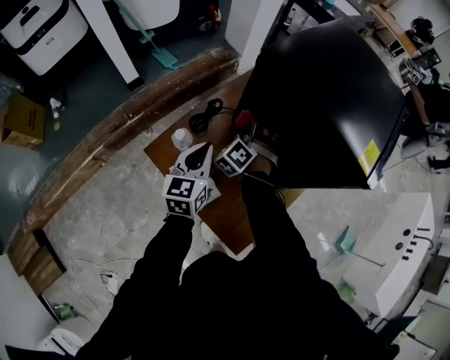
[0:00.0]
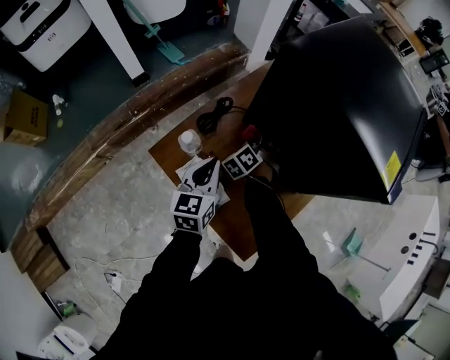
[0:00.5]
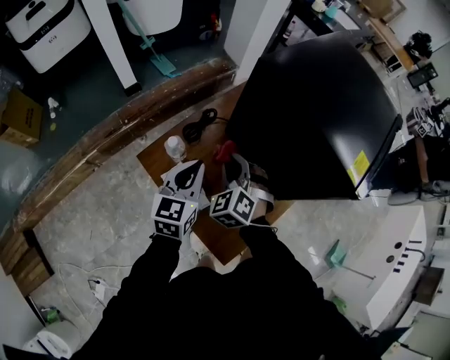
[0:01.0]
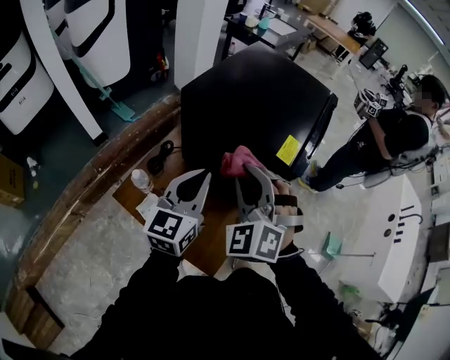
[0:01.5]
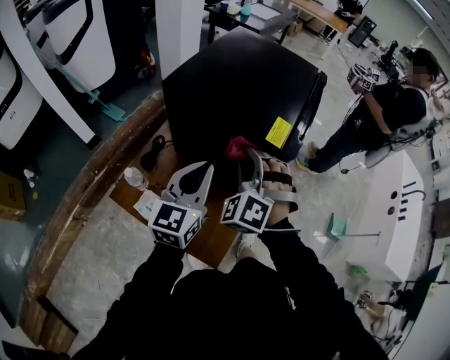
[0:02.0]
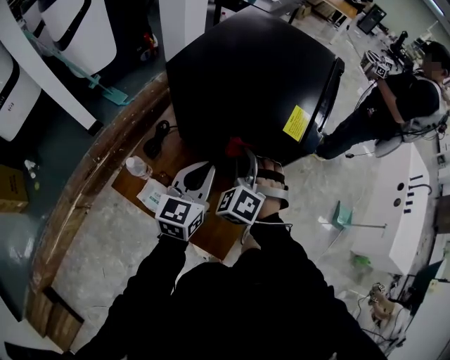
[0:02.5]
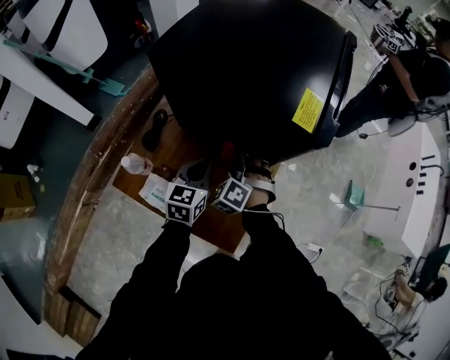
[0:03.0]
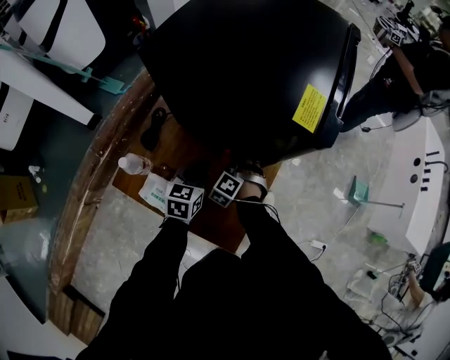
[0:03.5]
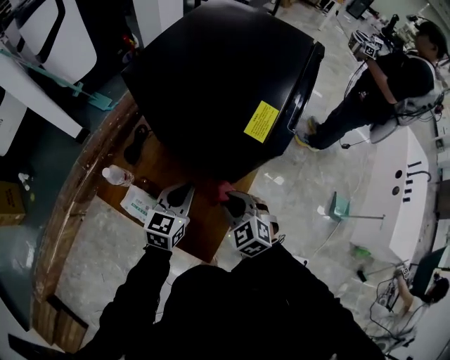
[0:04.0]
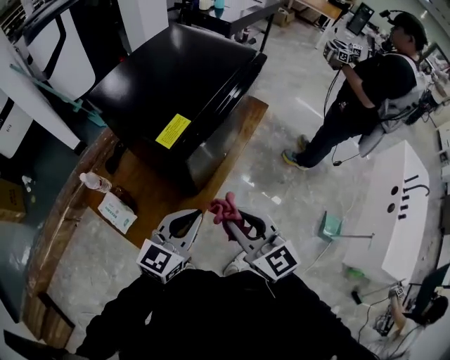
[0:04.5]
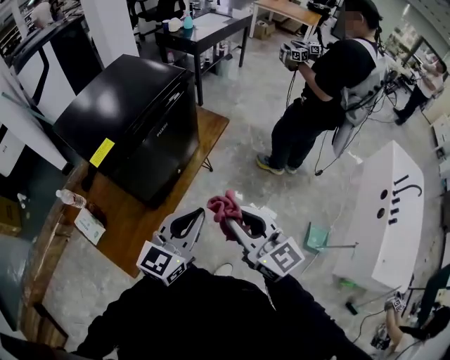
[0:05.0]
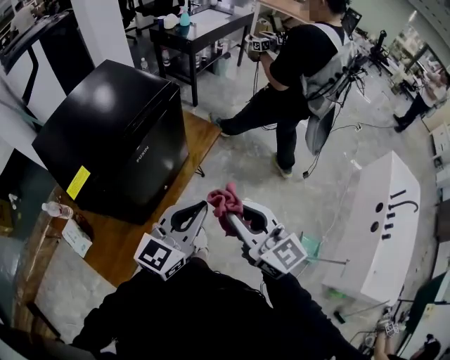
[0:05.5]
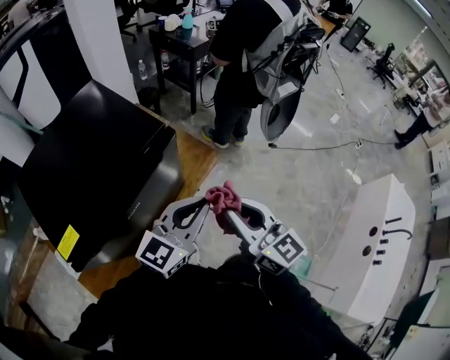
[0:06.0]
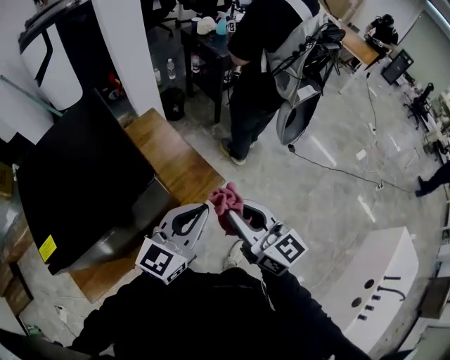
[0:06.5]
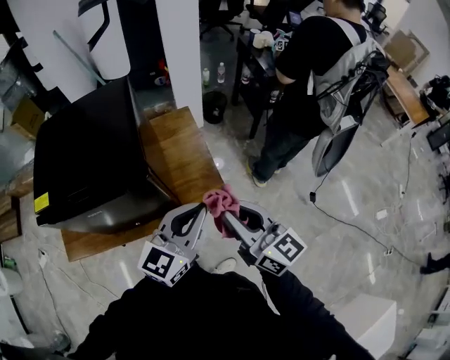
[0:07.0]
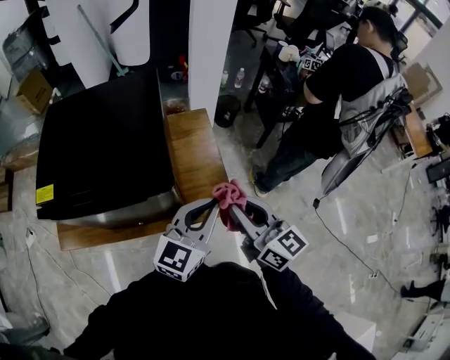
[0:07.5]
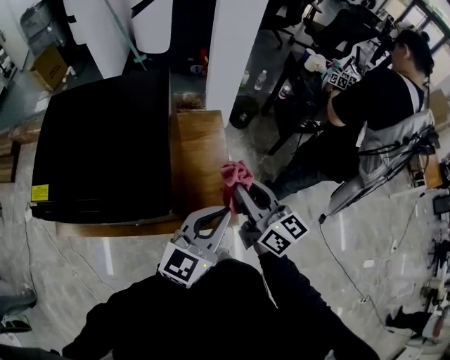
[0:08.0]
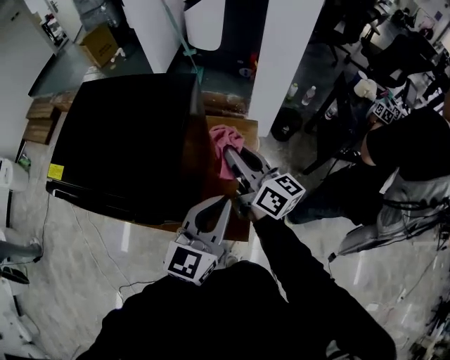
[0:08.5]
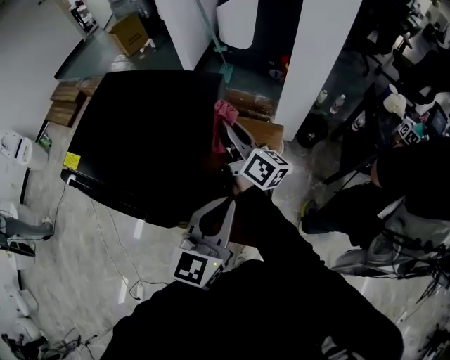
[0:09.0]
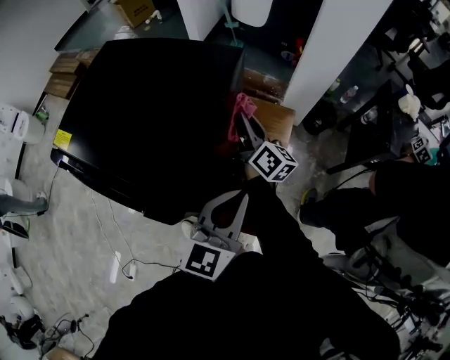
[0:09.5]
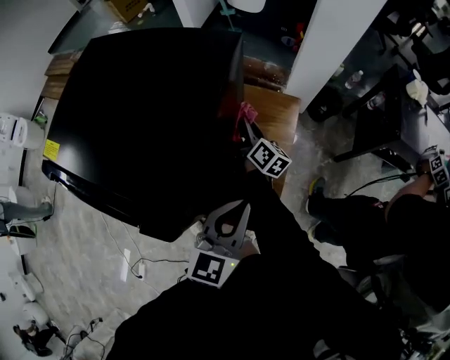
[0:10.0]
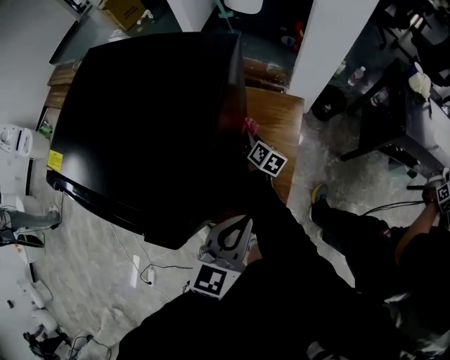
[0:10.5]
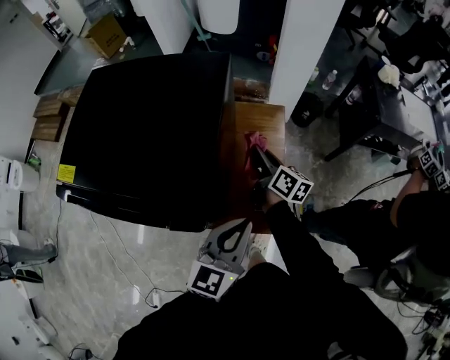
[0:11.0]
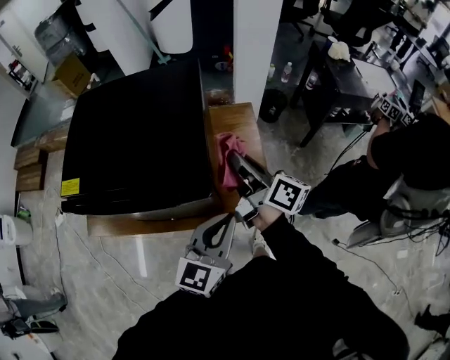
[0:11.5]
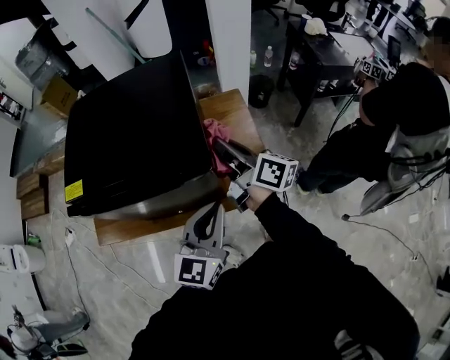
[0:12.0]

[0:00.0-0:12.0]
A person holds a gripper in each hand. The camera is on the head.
0:00.0 to 0:02.0: The right gripper swings up and down, some 40 cm each way, with 2 reversals; the left gripper is displaced to the right and upward by approximately 25 cm, and rotates some 30 degrees.
0:02.0 to 0:04.0: The grippers both shift downward by about 20 cm. The right gripper changes its angle by some 50 degrees.
0:04.0 to 0:06.0: The pair of grippers is taken to the right and forward, roughly 60 cm. The left gripper rotates roughly 20 degrees. Meanwhile the right gripper heads upward, covering roughly 25 cm, and tips its fingers upward by approximately 40 degrees.
0:06.0 to 0:08.0: The left gripper ends up about 30 cm from where it was, and turns by roughly 50 degrees. Meanwhile the right gripper changes place by roughly 35 cm, and rotates about 40 degrees.
0:08.0 to 0:10.0: The right gripper ends up about 40 cm from where it was, and turns by about 30 degrees; the left gripper travels downward by about 10 cm, and rotates approximately 40 degrees.
0:10.0 to 0:12.0: The left gripper travels backward, to the left and upward by about 20 cm, and rotates roughly 20 degrees; the right gripper heads backward and upward, covering roughly 35 cm.

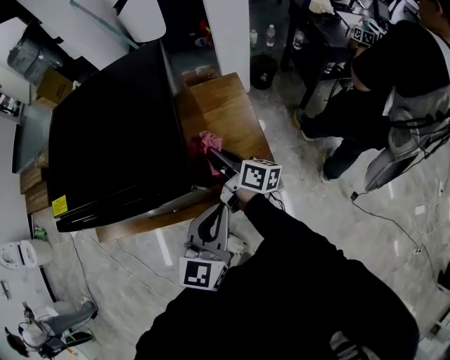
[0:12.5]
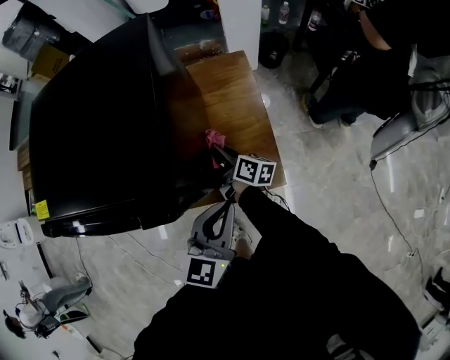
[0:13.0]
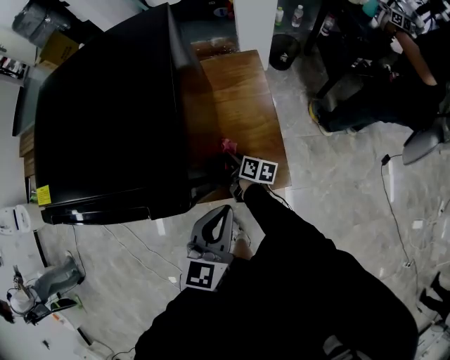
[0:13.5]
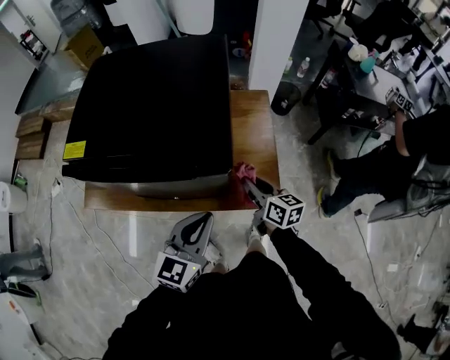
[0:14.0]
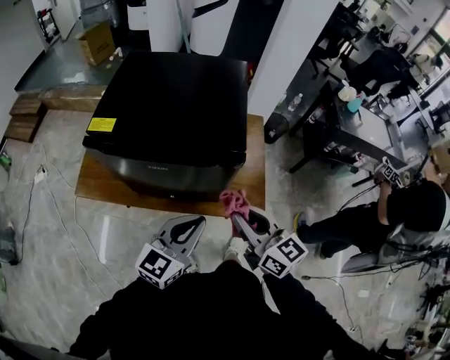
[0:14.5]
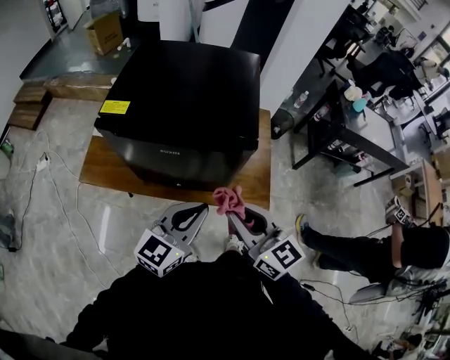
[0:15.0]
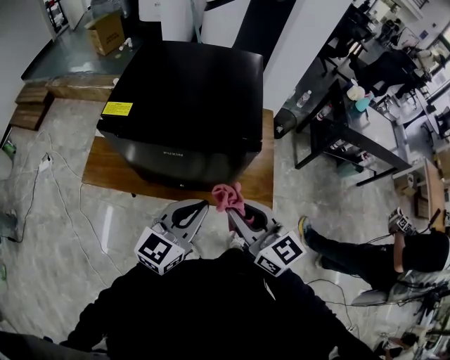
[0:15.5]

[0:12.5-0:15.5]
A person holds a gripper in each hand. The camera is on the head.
0:12.5 to 0:14.0: The left gripper travels to the left by approximately 10 cm. Meanwhile the right gripper is displaced backward by some 10 cm, goes downward and returns, some 25 cm each way, and rotates some 30 degrees.
0:14.0 to 0:15.5: The right gripper moves upward, backward and to the left, some 30 cm, and rotates some 30 degrees. Meanwhile the left gripper shifts approximately 10 cm upward, to the left and backward.

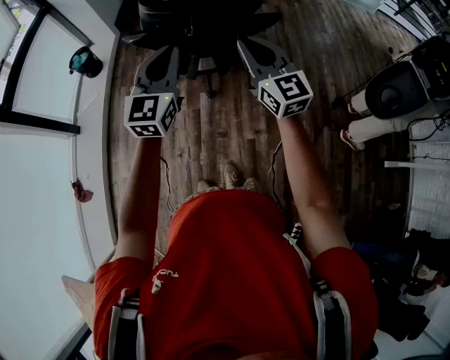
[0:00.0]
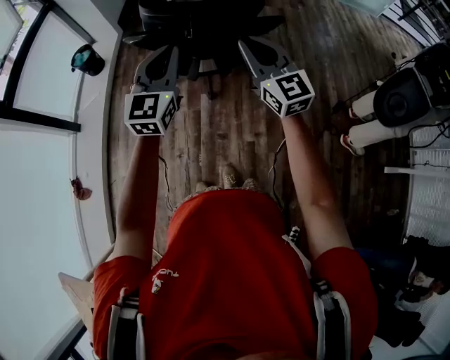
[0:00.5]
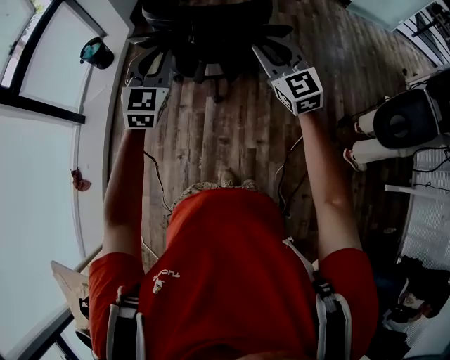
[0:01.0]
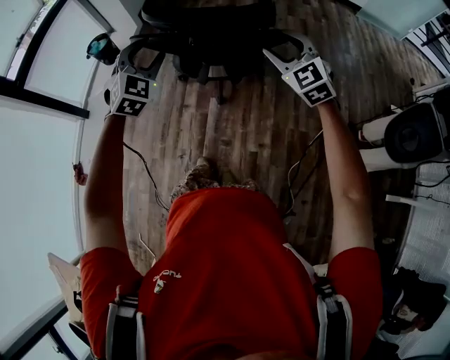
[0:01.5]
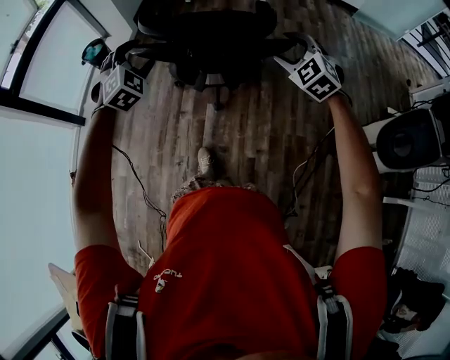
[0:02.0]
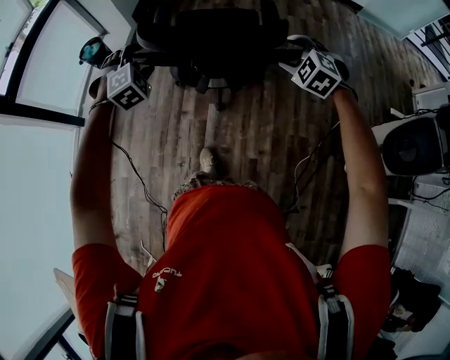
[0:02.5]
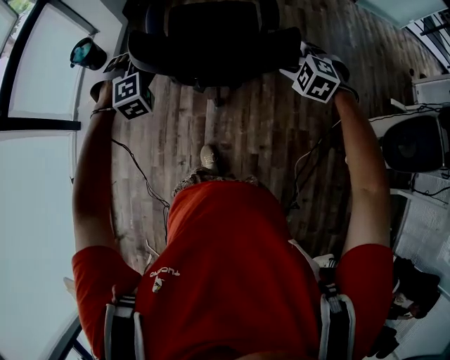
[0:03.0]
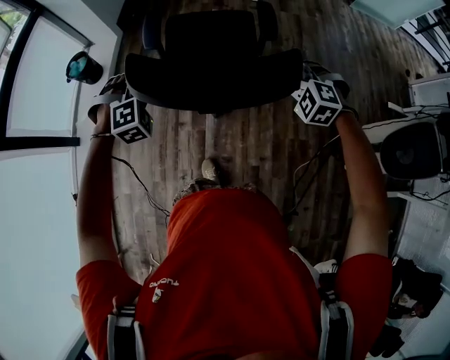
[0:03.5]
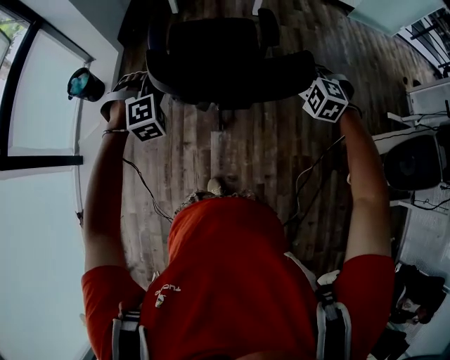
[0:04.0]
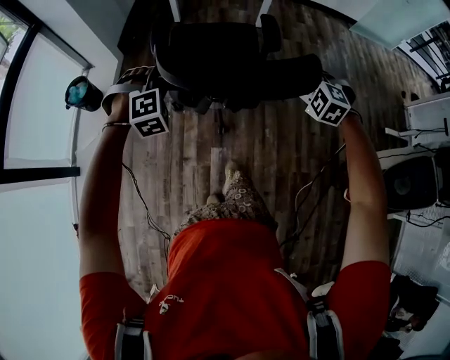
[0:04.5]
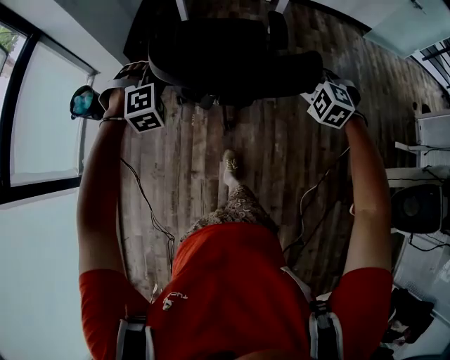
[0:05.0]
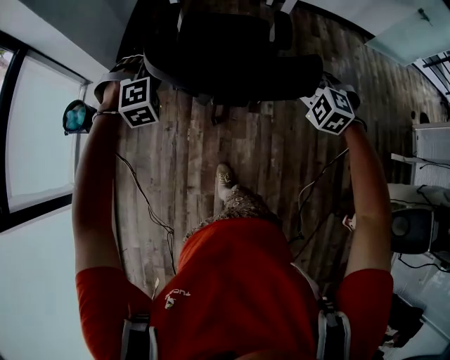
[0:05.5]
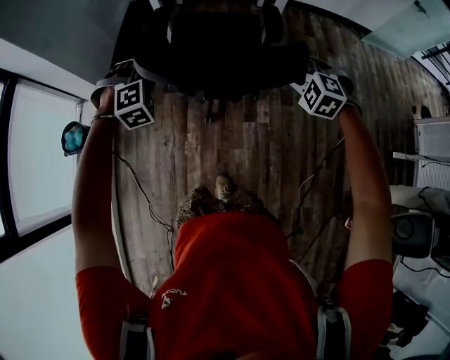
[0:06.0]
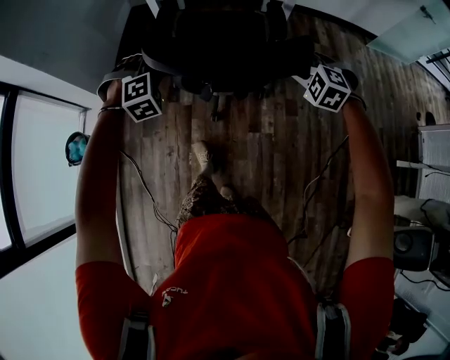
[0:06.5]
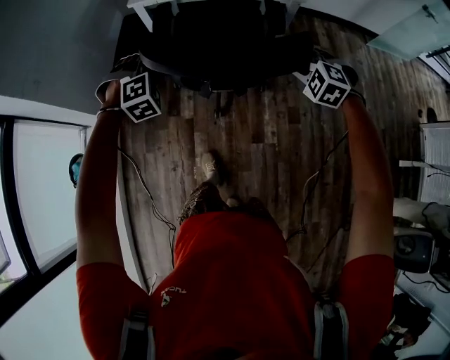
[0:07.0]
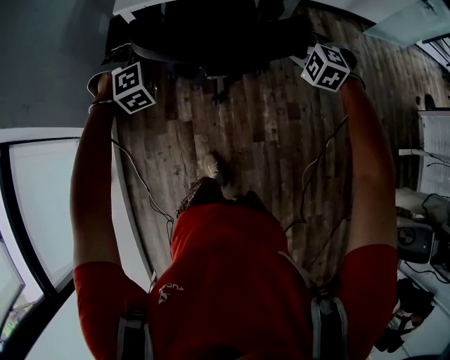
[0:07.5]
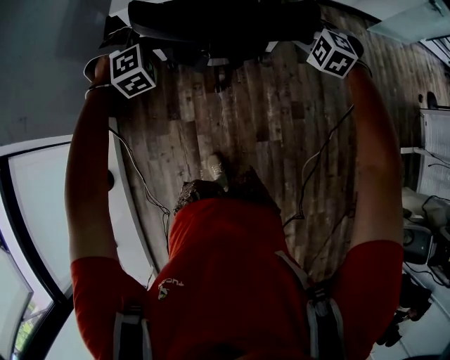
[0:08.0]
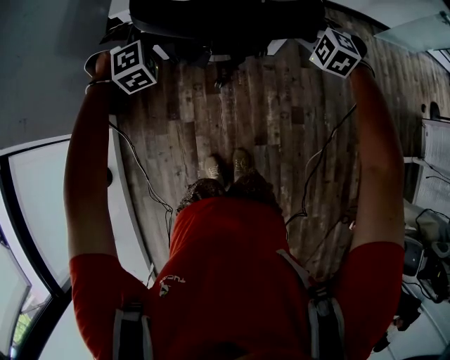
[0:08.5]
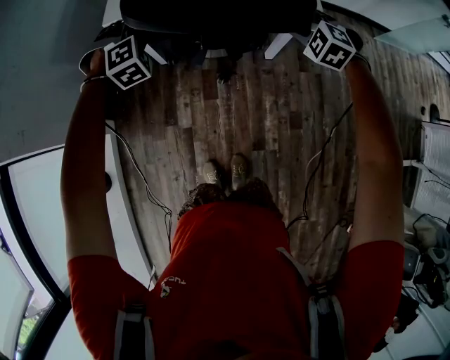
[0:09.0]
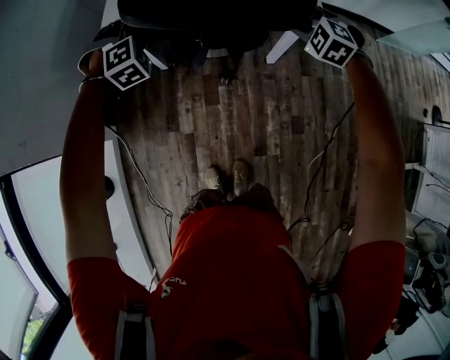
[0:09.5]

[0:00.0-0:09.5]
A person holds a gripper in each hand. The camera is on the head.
0:00.0 to 0:02.0: The left gripper travels forward, downward and to the left by some 20 cm, angles its fingers downward, by some 30 degrees, and opens, while the right gripper is displaced forward, to the right and downward by some 20 cm, angles its fingers downward, by approximately 40 degrees, and opens.
0:02.0 to 0:04.0: The grippers both shift forward and downward by about 20 cm. The right gripper changes its angle by roughly 20 degrees, and closes, while the left gripper swivels about 30 degrees, and closes its fingers.
0:04.0 to 0:05.5: Both grippers travel together forward, some 35 cm.
0:05.5 to 0:07.5: Both grippers travel together forward, about 40 cm.
0:07.5 to 0:09.5: Both grippers move forward, about 25 cm.

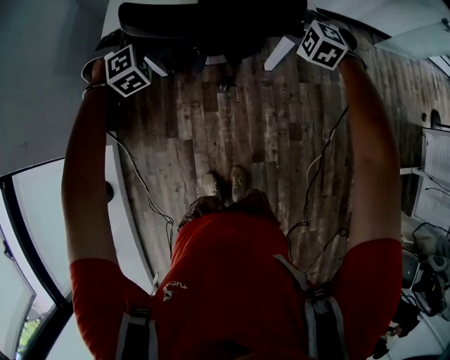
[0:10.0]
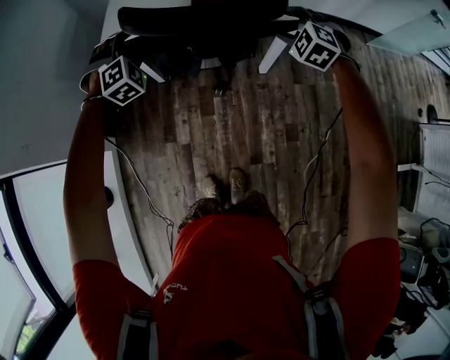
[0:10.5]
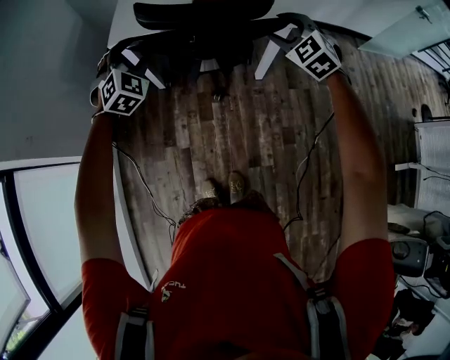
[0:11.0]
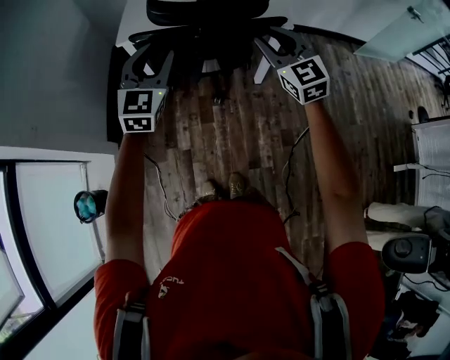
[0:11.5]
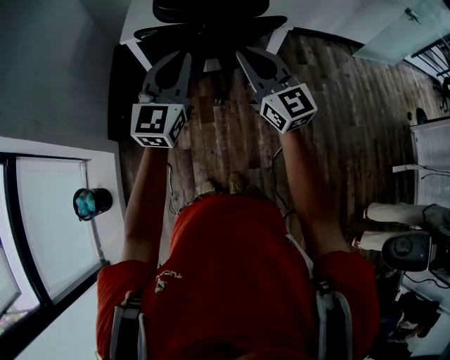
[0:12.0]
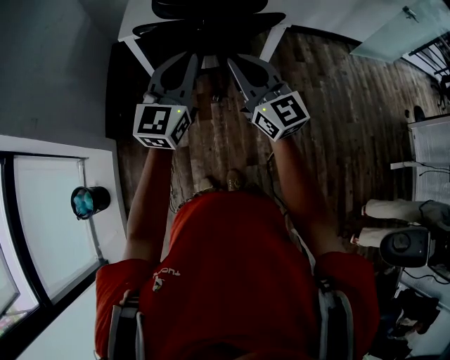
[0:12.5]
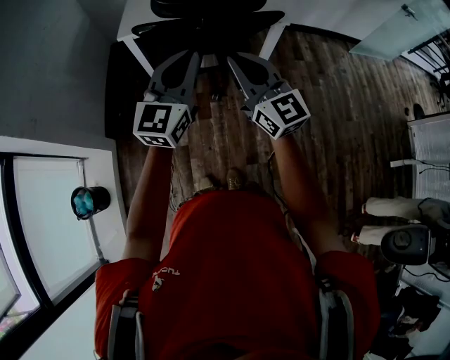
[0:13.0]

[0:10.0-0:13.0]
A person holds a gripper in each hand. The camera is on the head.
0:10.0 to 0:11.5: The left gripper travels backward and upward by about 25 cm, and points its fingers about 40 degrees further upward, while the right gripper goes roughly 25 cm backward, upward and to the left, and tips its fingers upward by roughly 50 degrees.
0:11.5 to 0:13.0: The right gripper is displaced backward and to the left by some 15 cm, swivels some 20 degrees, and closes its fingers. The left gripper heads backward and to the right, covering roughly 10 cm, changes its angle by roughly 20 degrees, and closes its fingers.
